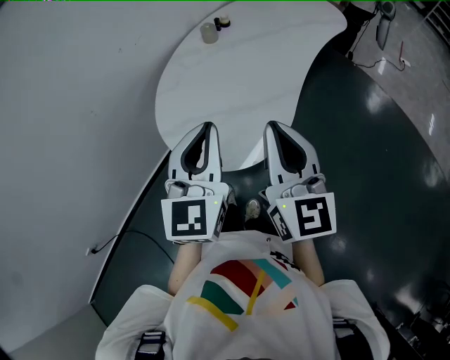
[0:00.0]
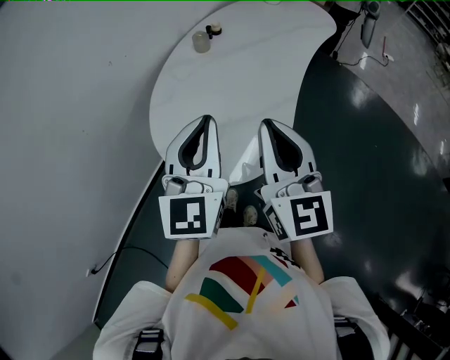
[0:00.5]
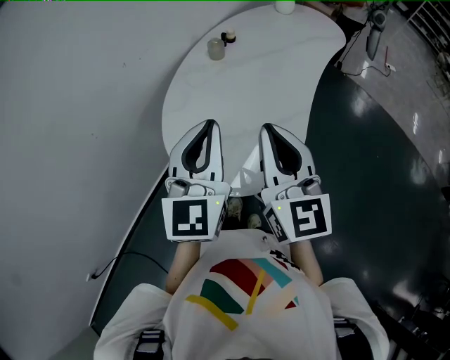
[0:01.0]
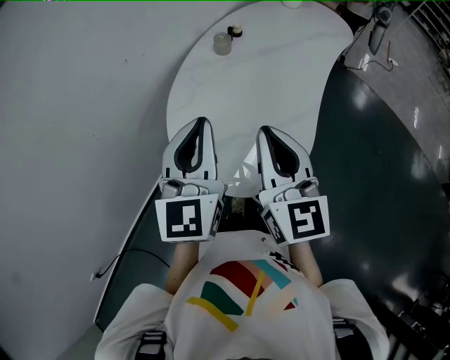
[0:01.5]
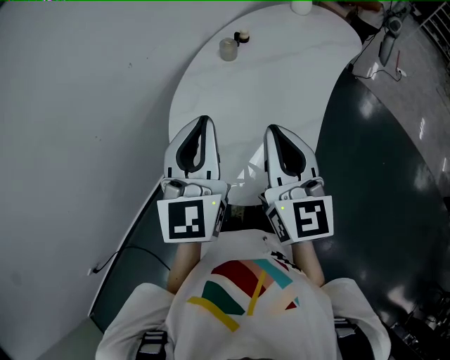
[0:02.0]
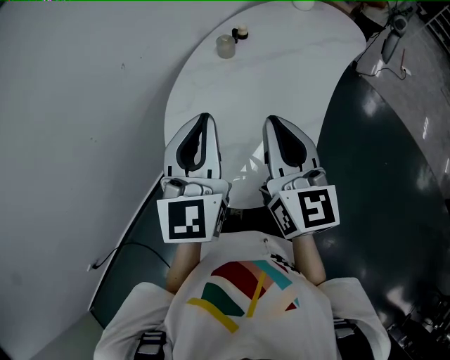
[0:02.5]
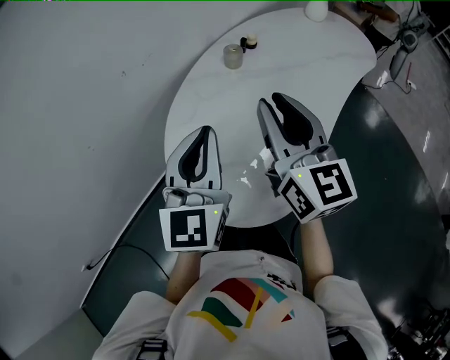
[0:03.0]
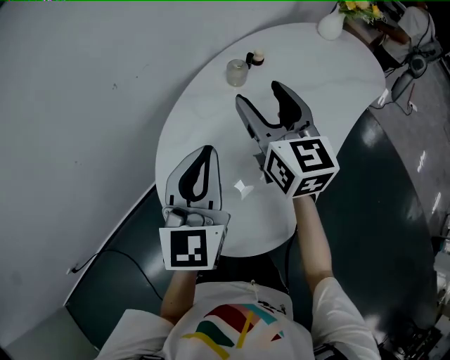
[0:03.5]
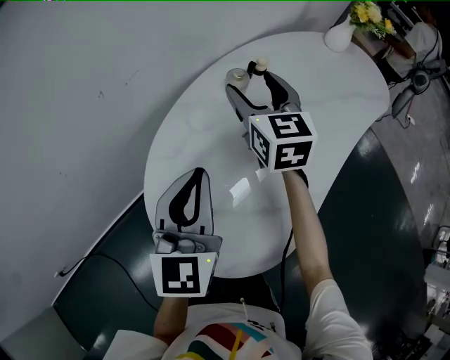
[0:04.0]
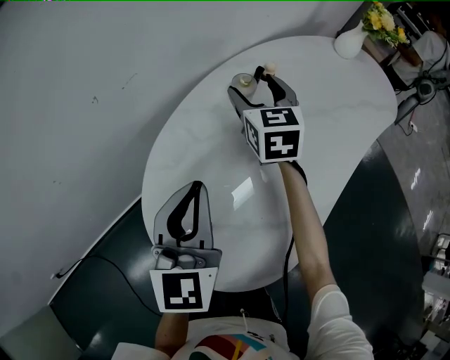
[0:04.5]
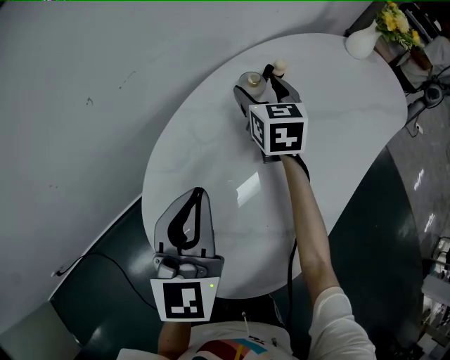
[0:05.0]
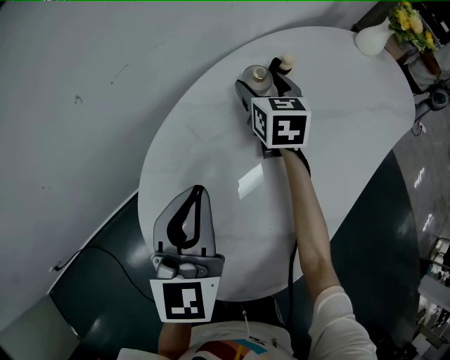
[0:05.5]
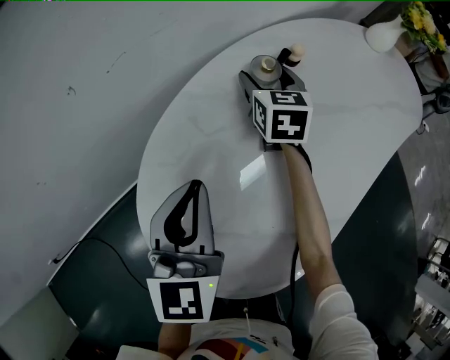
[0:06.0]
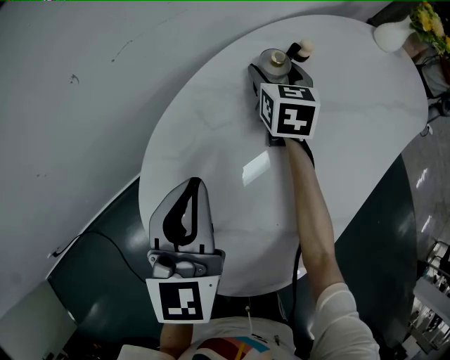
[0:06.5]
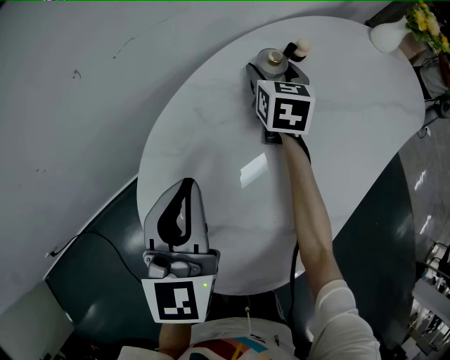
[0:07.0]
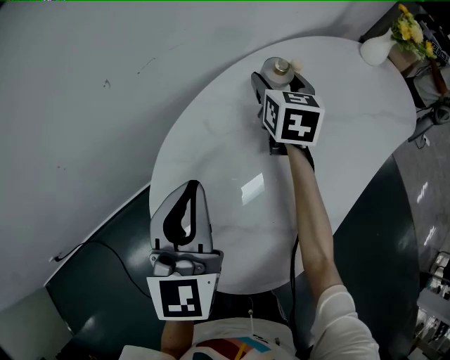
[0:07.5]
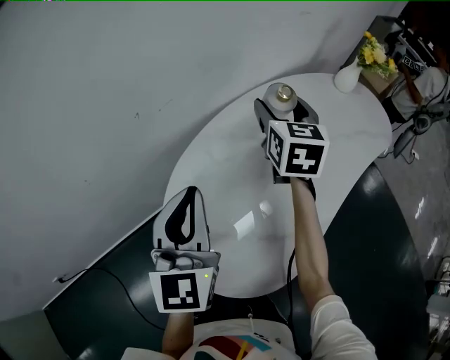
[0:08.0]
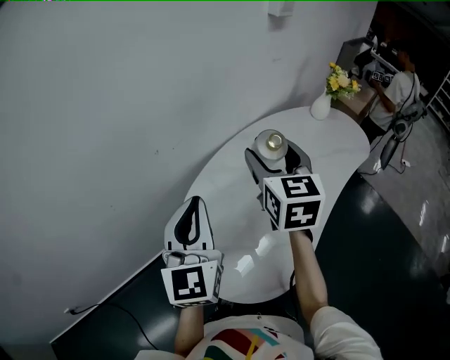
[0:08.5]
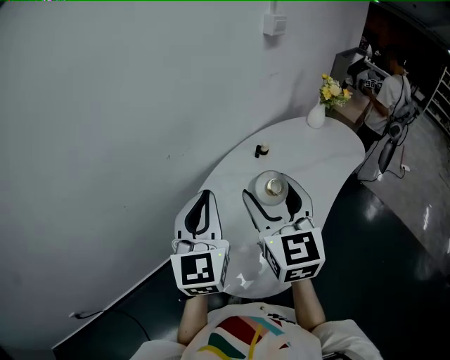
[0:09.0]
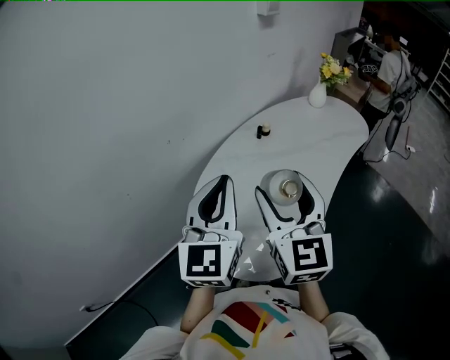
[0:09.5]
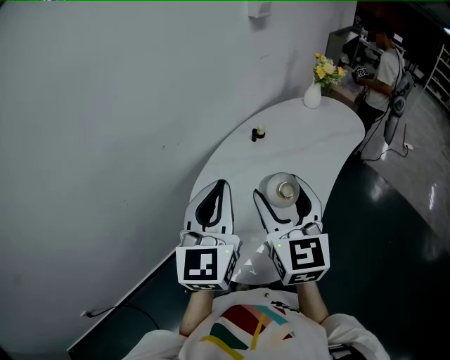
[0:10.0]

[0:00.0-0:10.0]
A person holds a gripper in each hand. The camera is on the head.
0:00.0 to 0:02.0: Both grippers travel together forward and to the left, roughly 15 cm.
0:02.0 to 0:04.0: The right gripper travels forward by about 35 cm, changes its angle by roughly 20 degrees, and opens up. Meanwhile the left gripper goes some 15 cm forward and downward.
0:04.0 to 0:06.0: The right gripper is displaced downward and forward by about 20 cm, while the left gripper goes approximately 10 cm downward.
0:06.0 to 0:08.0: The right gripper goes some 20 cm upward, while the left gripper goes some 15 cm upward.
0:08.0 to 0:10.0: The left gripper travels upward and backward by approximately 15 cm. Meanwhile the right gripper heads backward and upward, covering approximately 30 cm.

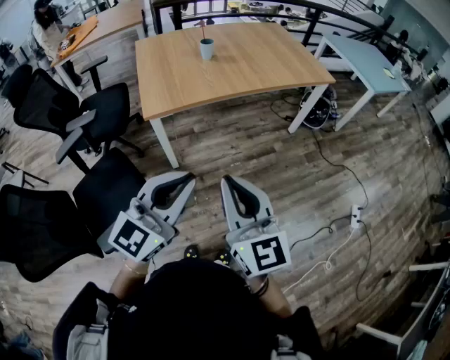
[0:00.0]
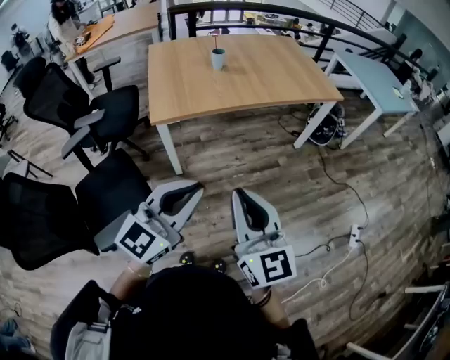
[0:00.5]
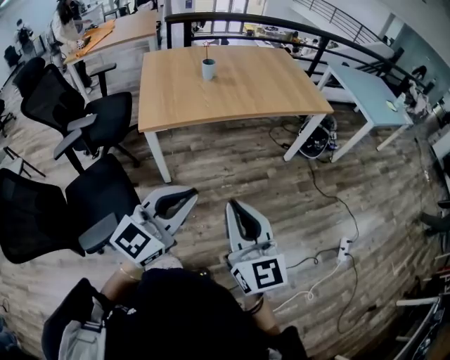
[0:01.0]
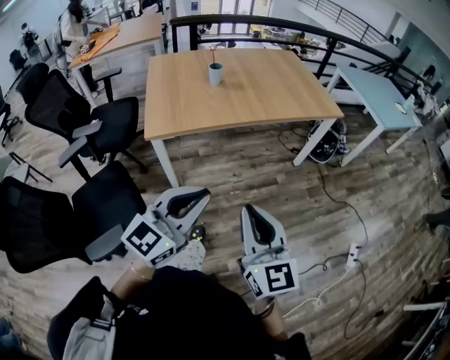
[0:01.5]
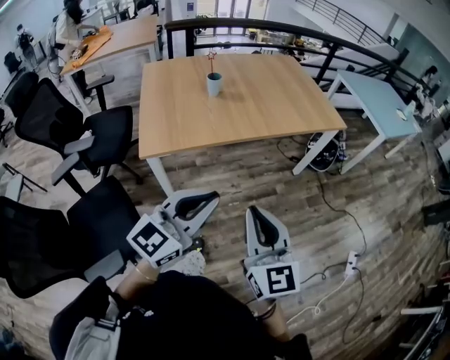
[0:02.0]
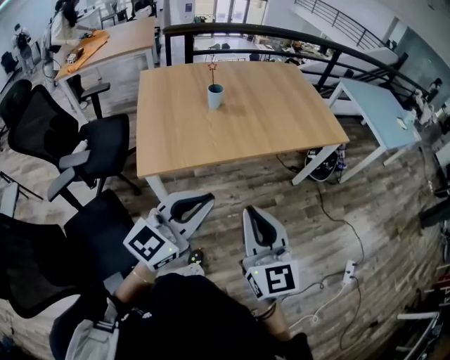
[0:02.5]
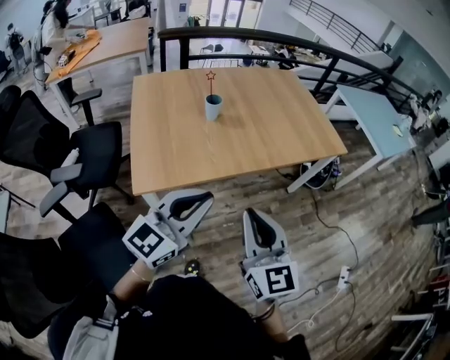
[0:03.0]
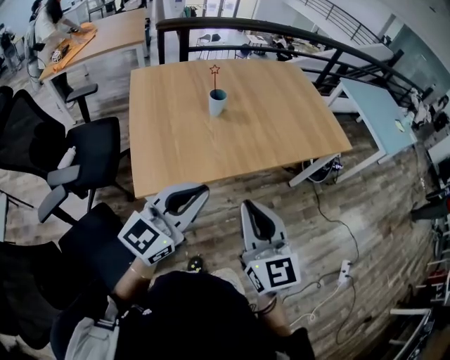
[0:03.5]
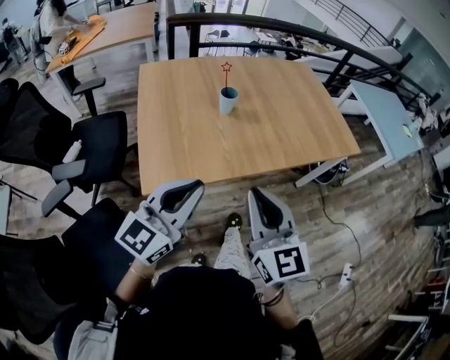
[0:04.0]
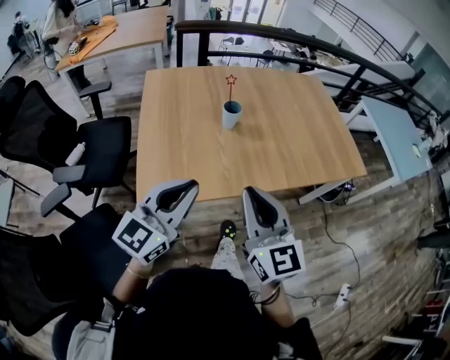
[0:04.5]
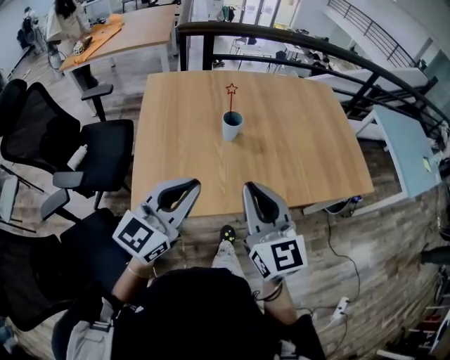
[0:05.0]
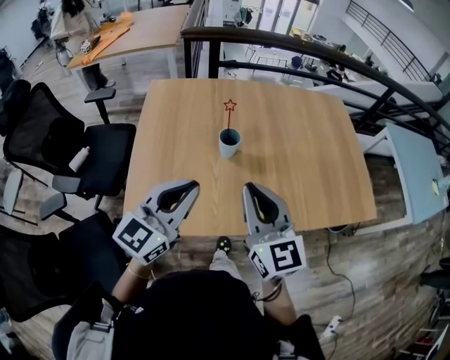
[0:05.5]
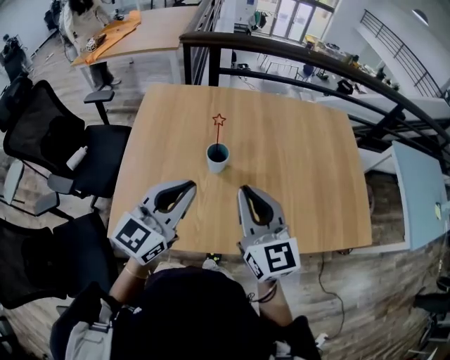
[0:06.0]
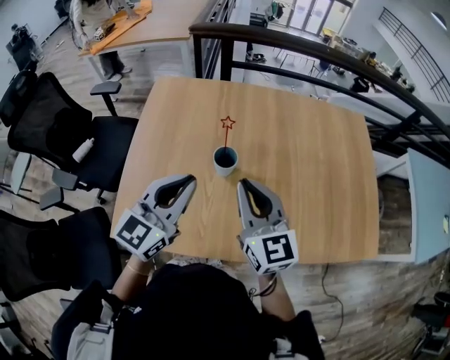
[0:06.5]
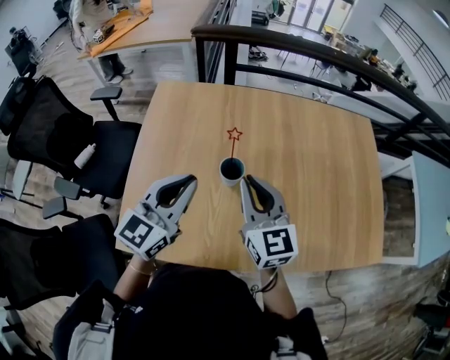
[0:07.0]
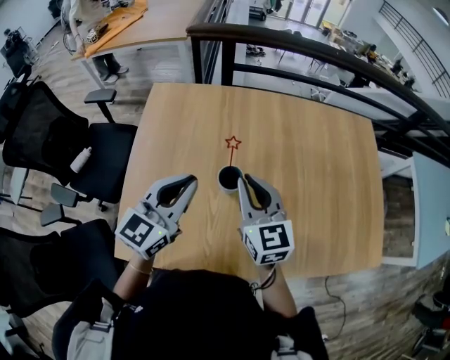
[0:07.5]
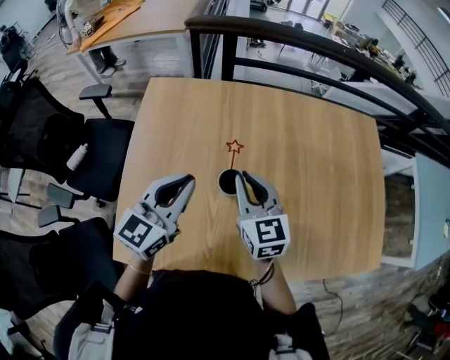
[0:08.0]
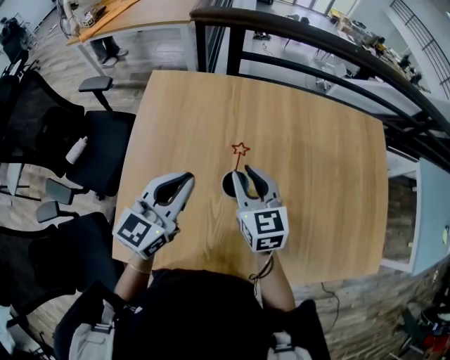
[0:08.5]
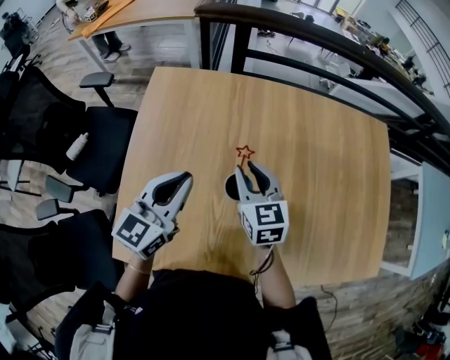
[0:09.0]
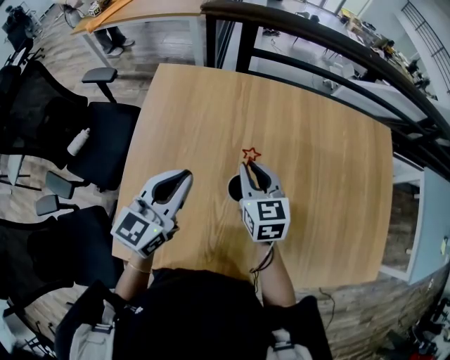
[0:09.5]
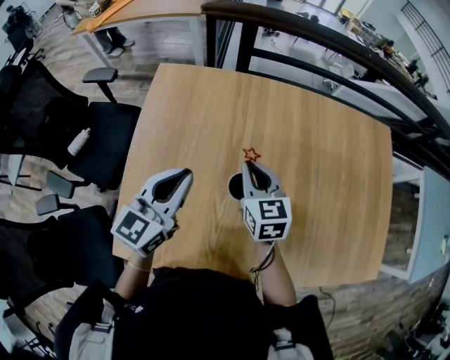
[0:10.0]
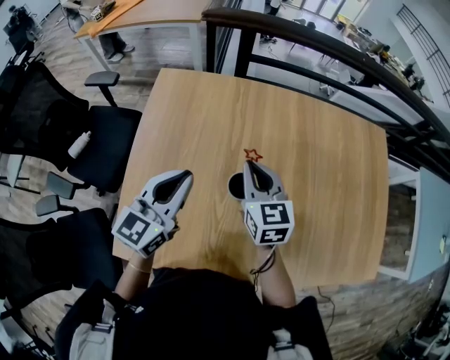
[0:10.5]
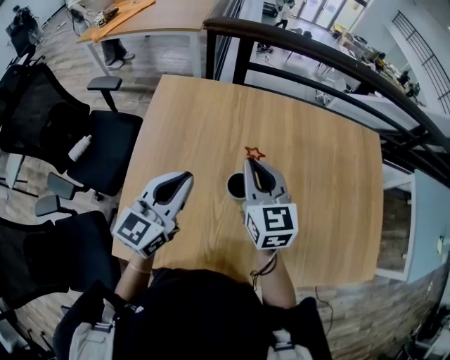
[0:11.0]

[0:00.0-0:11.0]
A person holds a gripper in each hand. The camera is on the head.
0:00.0 to 0:02.0: The left gripper travels forward by approximately 15 cm, while the right gripper heads forward and to the right, covering some 15 cm.
0:02.0 to 0:03.5: The grippers both shift forward and to the left by roughly 25 cm.
0:03.5 to 0:05.5: Both grippers move forward, some 30 cm. The left gripper turns by roughly 20 degrees.
0:05.5 to 0:07.5: The grippers both shift forward by approximately 25 cm.
0:07.5 to 0:09.0: The left gripper moves forward, about 5 cm; the right gripper moves forward and downward, some 10 cm.
0:09.0 to 0:11.0: The right gripper is displaced upward by roughly 10 cm, and closes up.

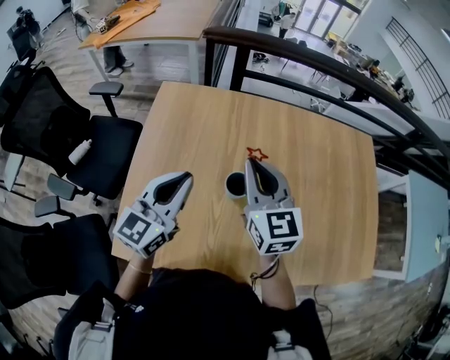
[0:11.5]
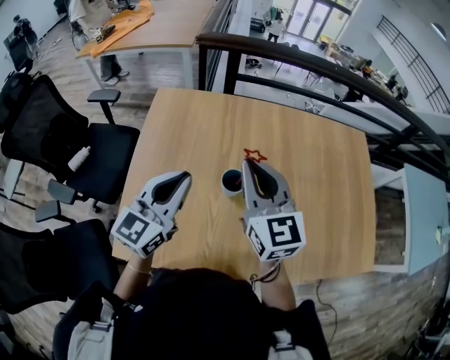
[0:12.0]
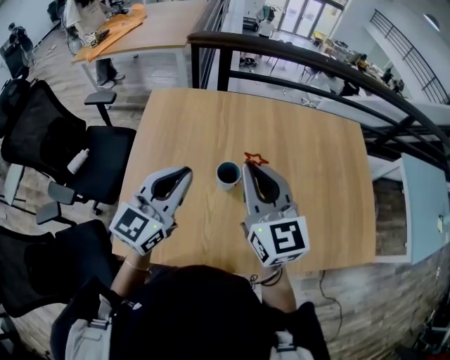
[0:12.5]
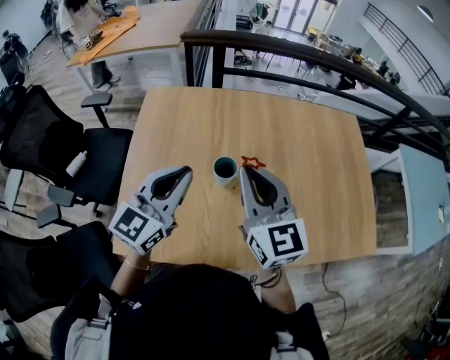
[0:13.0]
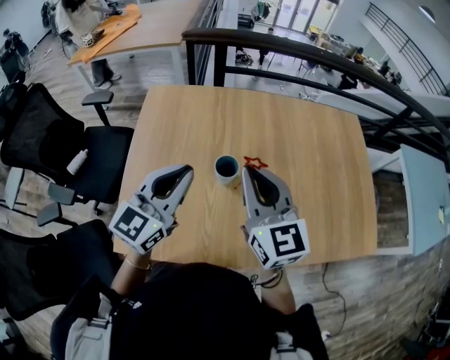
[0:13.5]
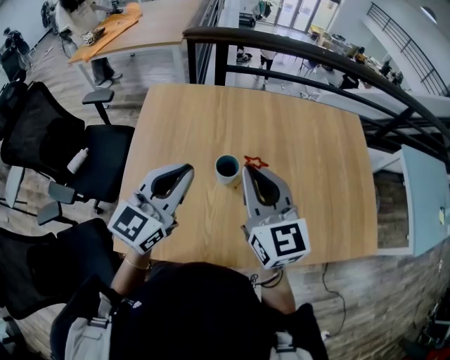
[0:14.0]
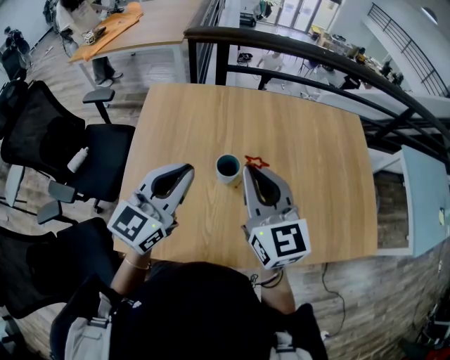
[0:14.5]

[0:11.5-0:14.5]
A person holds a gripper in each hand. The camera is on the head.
0:11.5 to 0:13.0: The left gripper is displaced backward by roughly 5 cm. Meanwhile the right gripper shifts roughly 10 cm backward.
0:13.0 to 0:14.5: Both grippers stay about where they are.

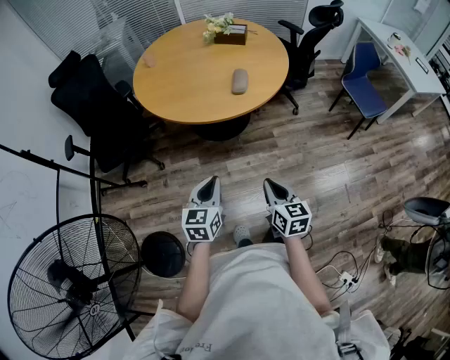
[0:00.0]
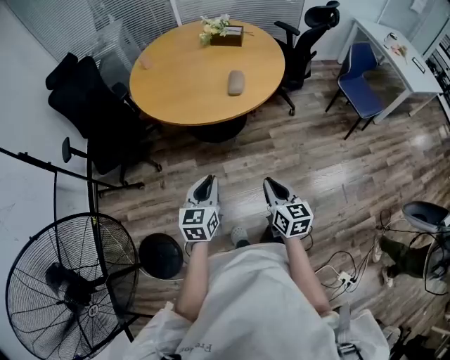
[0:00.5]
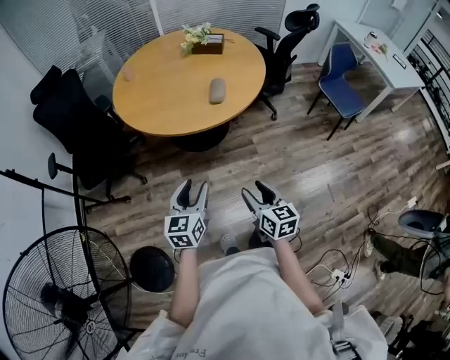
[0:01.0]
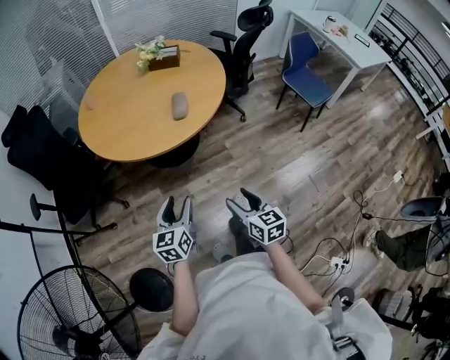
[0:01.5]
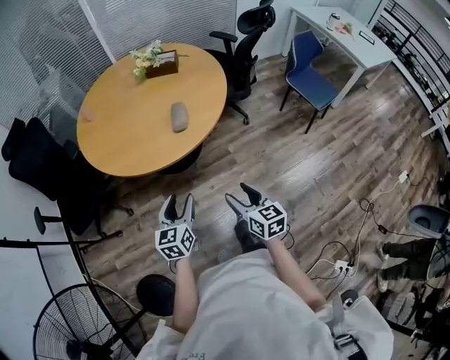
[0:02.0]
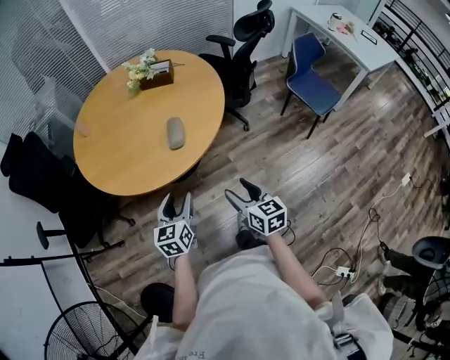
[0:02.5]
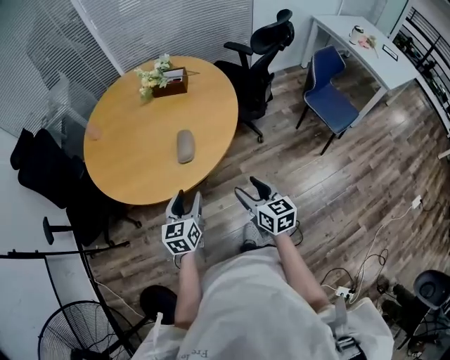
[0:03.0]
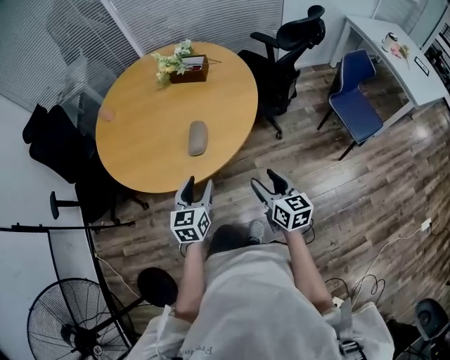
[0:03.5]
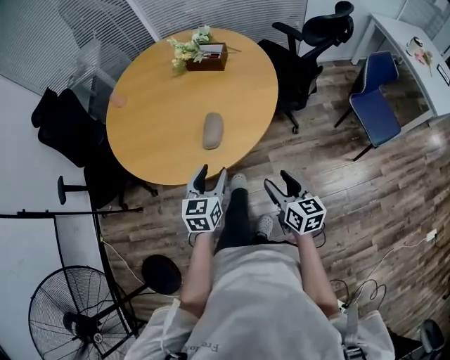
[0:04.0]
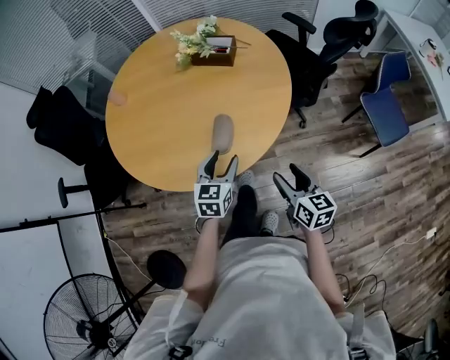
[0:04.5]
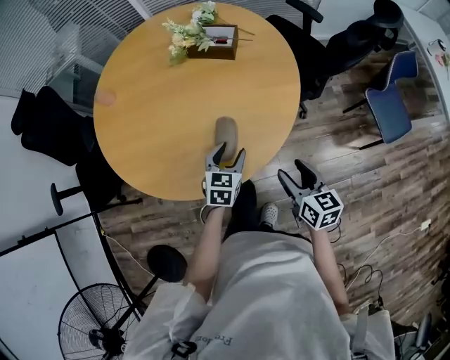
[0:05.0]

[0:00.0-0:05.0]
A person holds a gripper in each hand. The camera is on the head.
0:00.0 to 0:02.5: Both grippers travel together forward and to the right, approximately 25 cm. The left gripper opens up, while the right gripper opens.
0:02.5 to 0:05.0: The grippers both shift forward by about 30 cm.
